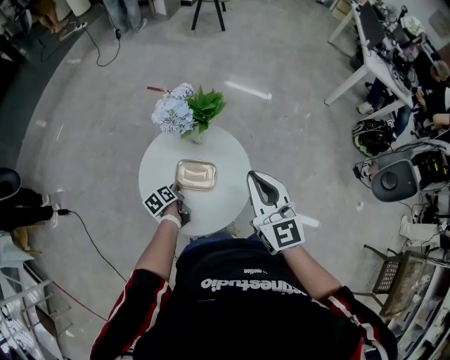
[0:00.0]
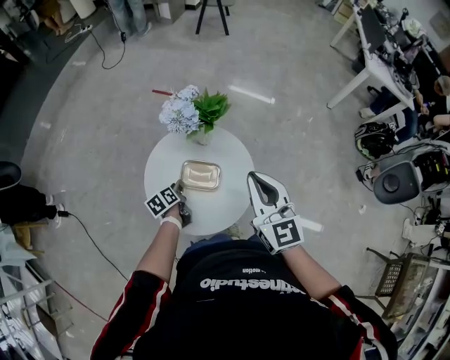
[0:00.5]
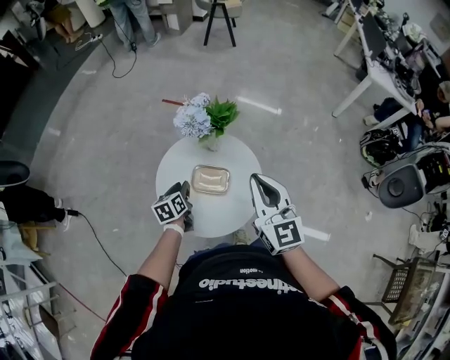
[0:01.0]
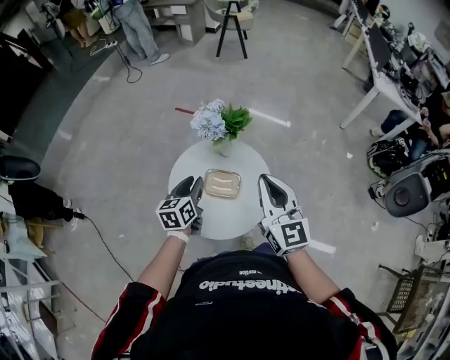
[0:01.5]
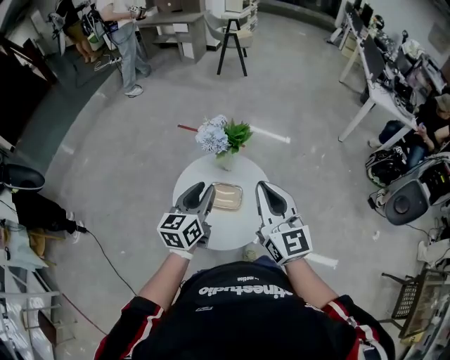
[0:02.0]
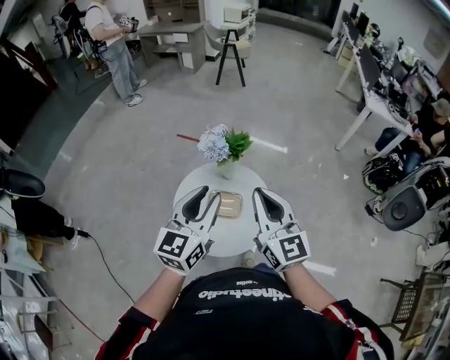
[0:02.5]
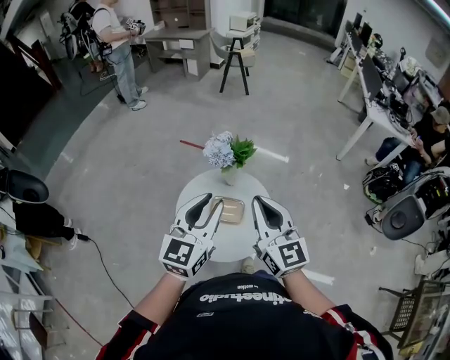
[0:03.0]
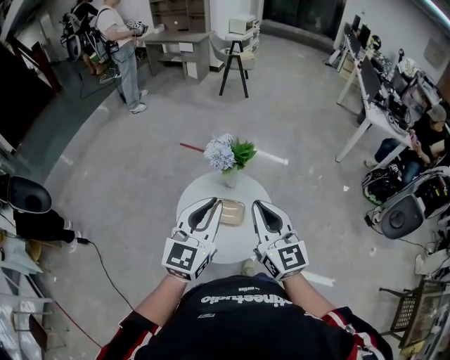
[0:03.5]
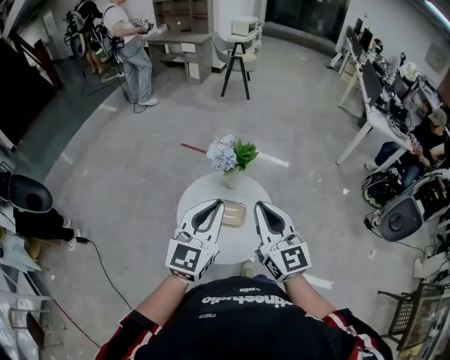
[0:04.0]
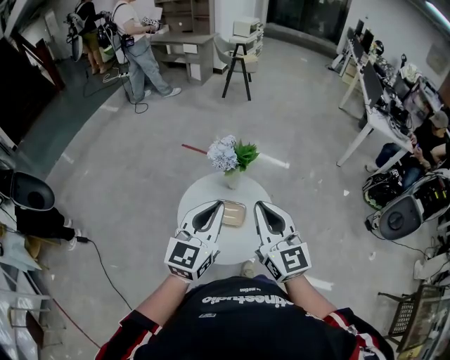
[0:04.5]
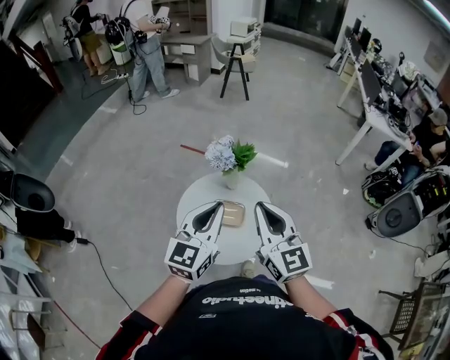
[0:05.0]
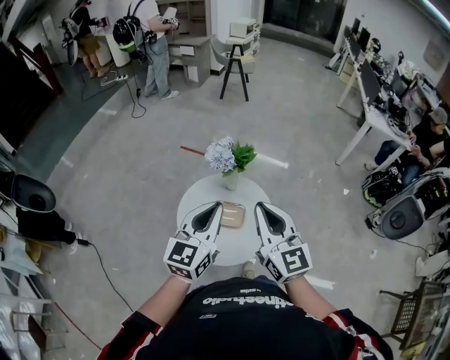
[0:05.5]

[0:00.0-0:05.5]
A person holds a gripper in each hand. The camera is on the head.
0:00.0 to 0:02.0: The right gripper is displaced upward, to the left and backward by approximately 15 cm, while the left gripper moves upward, roughly 35 cm, and angles its fingers upward, by roughly 40 degrees.
0:02.0 to 0:03.5: The left gripper travels upward and backward by about 15 cm, and turns by about 30 degrees.
0:03.5 to 0:05.5: There are only small adjustments of the grippers.

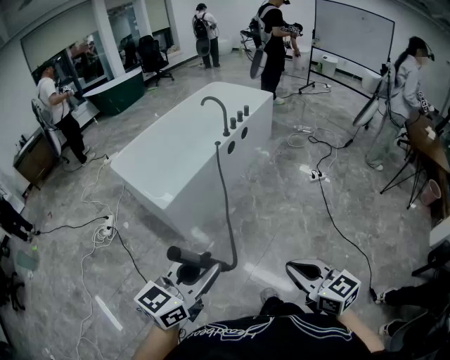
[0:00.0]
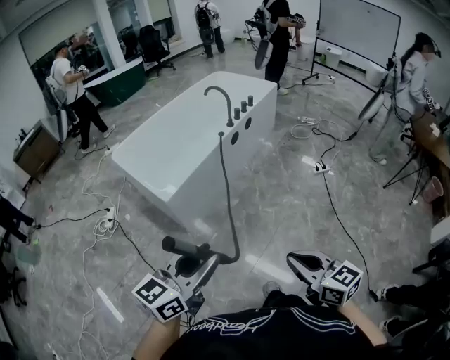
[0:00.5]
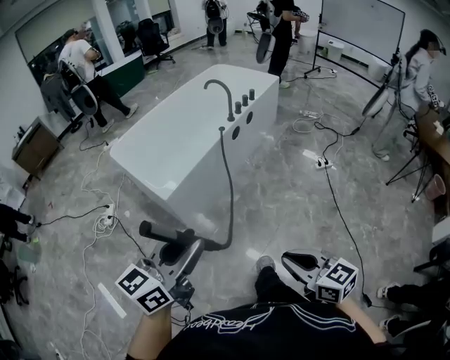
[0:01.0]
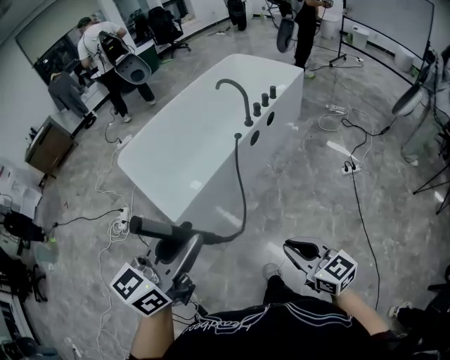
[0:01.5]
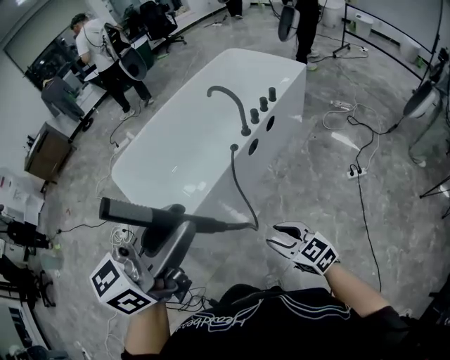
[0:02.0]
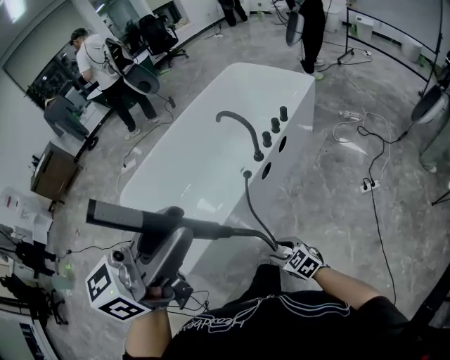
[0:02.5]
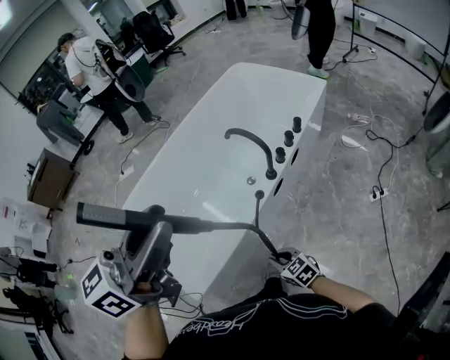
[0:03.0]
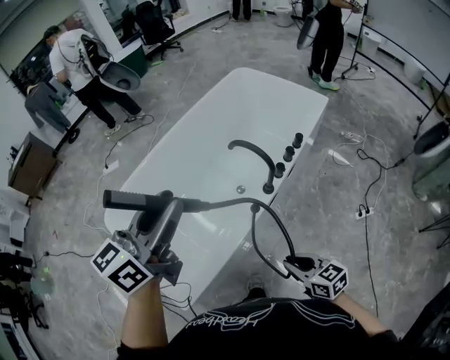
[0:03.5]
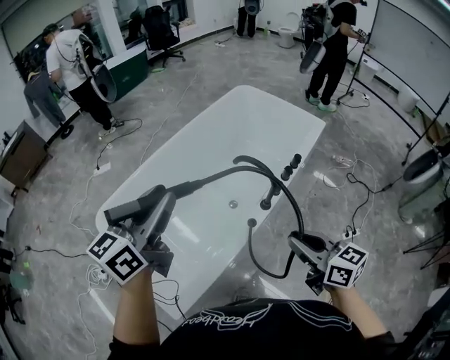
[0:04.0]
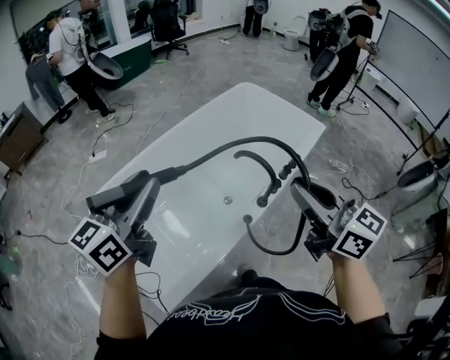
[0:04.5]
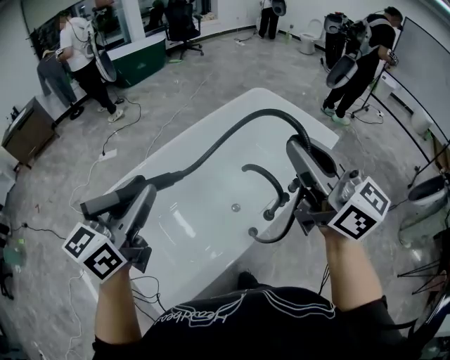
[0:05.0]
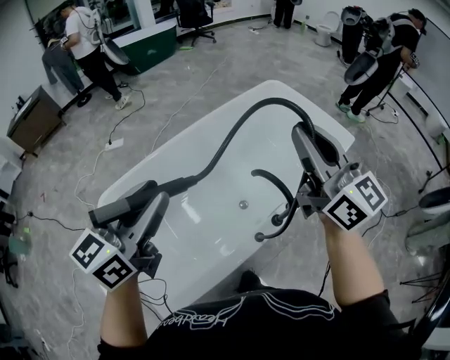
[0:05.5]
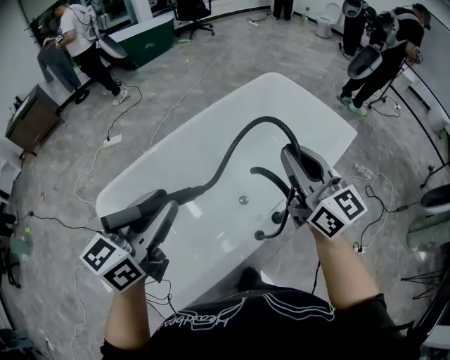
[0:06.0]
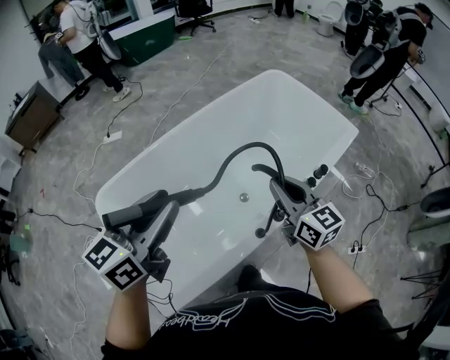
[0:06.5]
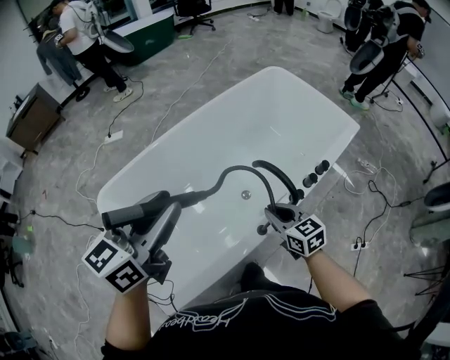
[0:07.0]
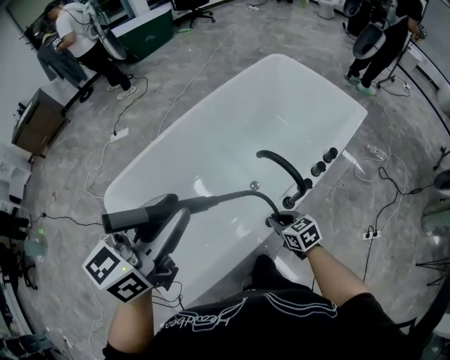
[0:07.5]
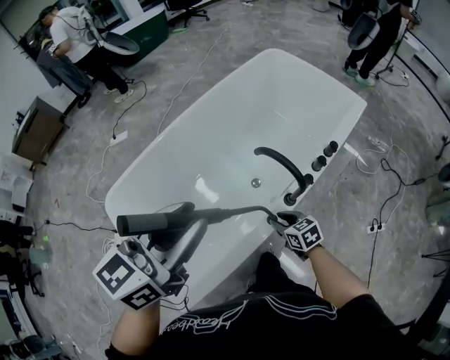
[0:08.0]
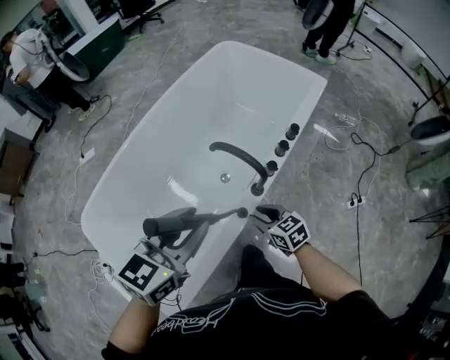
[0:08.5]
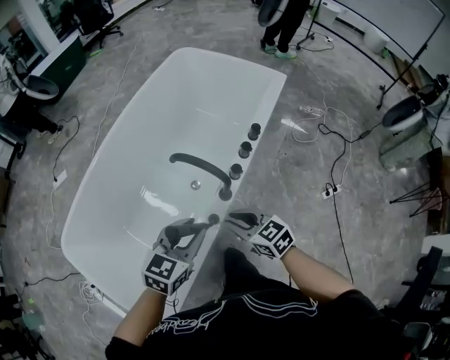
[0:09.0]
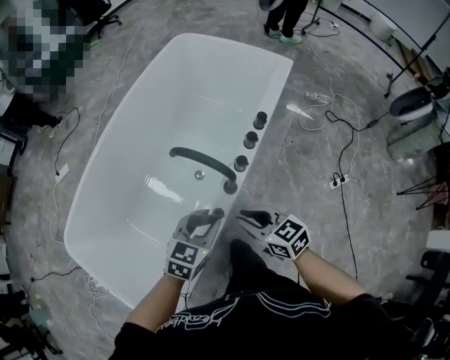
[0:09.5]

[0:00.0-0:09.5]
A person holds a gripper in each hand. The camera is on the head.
0:00.0 to 0:02.0: Both grippers travel together forward, roughly 40 cm. The right gripper changes its angle by roughly 20 degrees, and opens.
0:02.0 to 0:04.0: The left gripper moves forward, approximately 40 cm. Meanwhile the right gripper moves forward and upward, some 35 cm, rotates some 30 degrees, and closes.
0:04.0 to 0:05.5: The left gripper travels forward by some 5 cm. The right gripper shifts some 30 cm forward and upward, and turns by approximately 30 degrees.
0:05.5 to 0:07.5: The right gripper travels downward by about 50 cm, and tilts its fingers approximately 60 degrees downward; the left gripper shifts by approximately 5 cm.
0:07.5 to 0:09.5: The left gripper heads downward and to the right, covering roughly 35 cm, and turns by approximately 40 degrees; the right gripper goes some 10 cm upward and to the right.

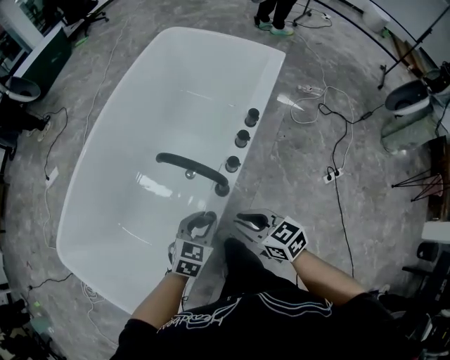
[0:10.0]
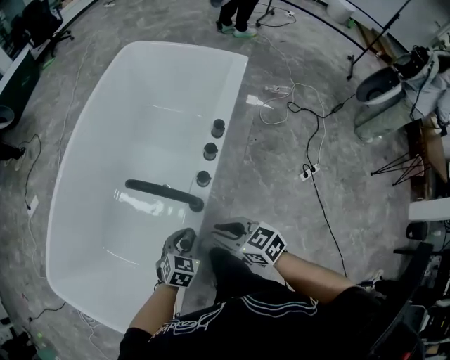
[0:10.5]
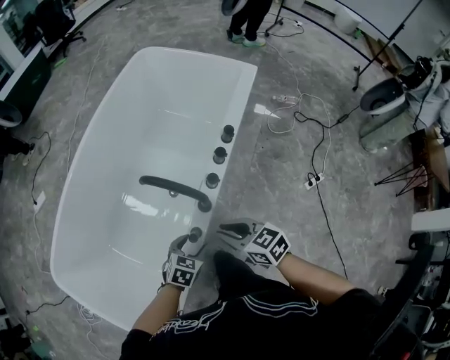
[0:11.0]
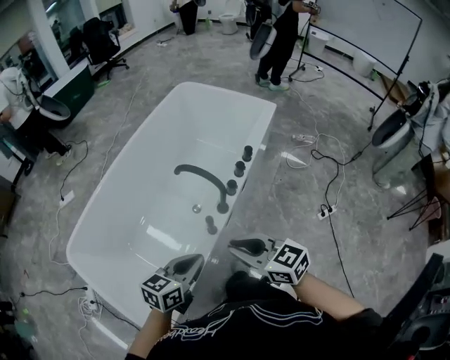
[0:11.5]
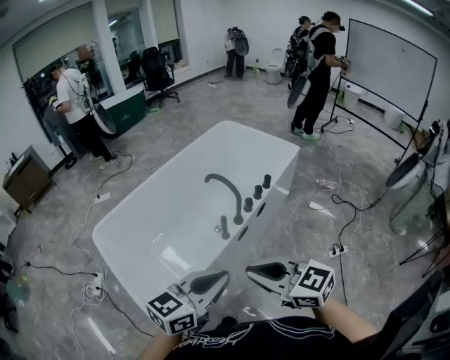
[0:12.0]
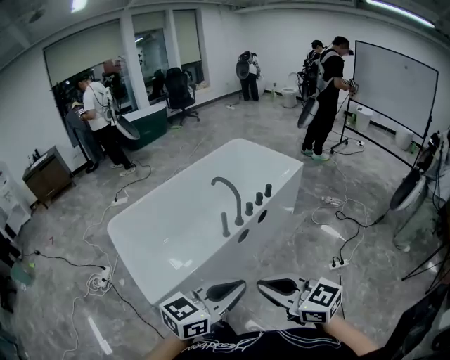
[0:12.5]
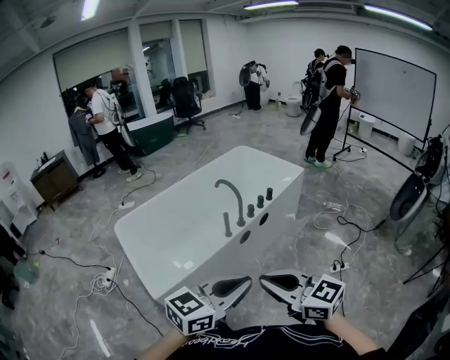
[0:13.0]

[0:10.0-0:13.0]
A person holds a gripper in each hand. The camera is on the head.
0:10.0 to 0:11.5: The two grippers go approximately 20 cm upward and backward. The left gripper turns by some 30 degrees, and closes its fingers.
0:11.5 to 0:13.0: The right gripper heads backward and upward, covering roughly 35 cm, and turns by about 20 degrees; the left gripper goes about 40 cm backward, upward and to the right, and swivels approximately 30 degrees.

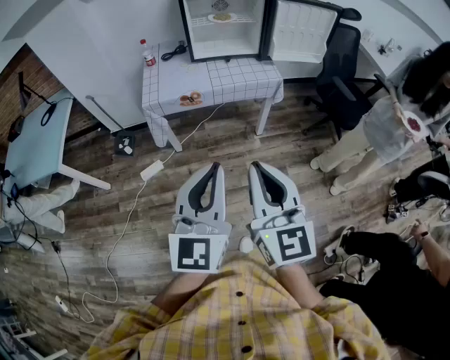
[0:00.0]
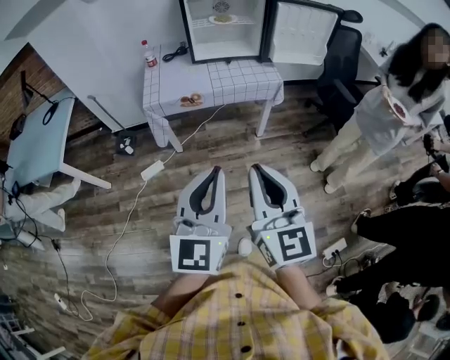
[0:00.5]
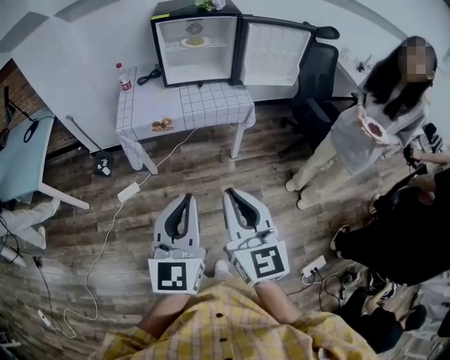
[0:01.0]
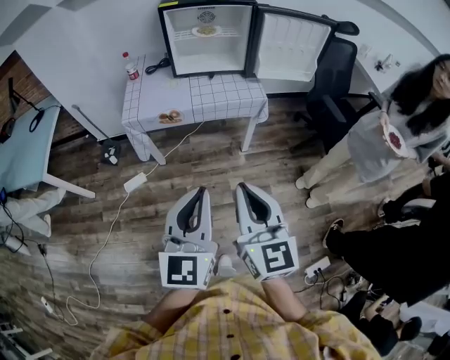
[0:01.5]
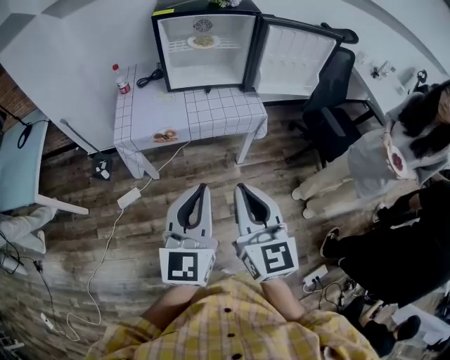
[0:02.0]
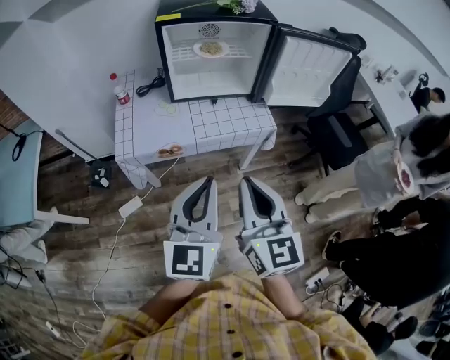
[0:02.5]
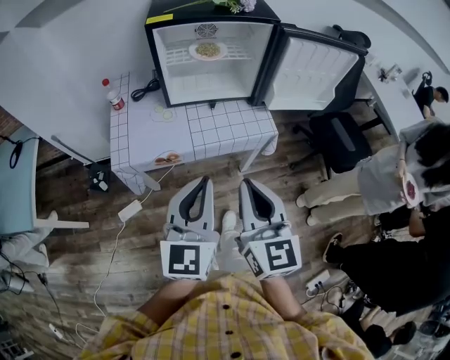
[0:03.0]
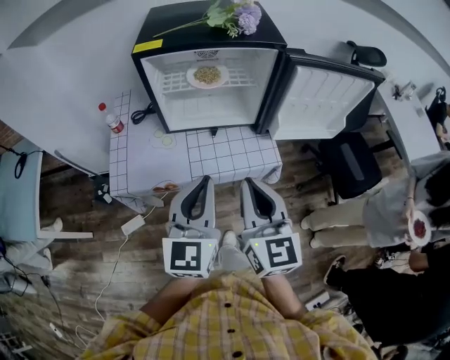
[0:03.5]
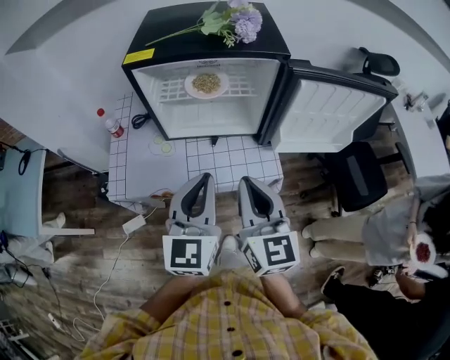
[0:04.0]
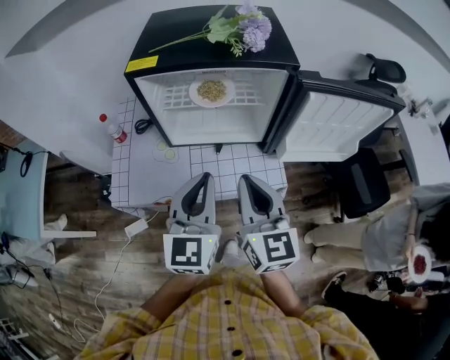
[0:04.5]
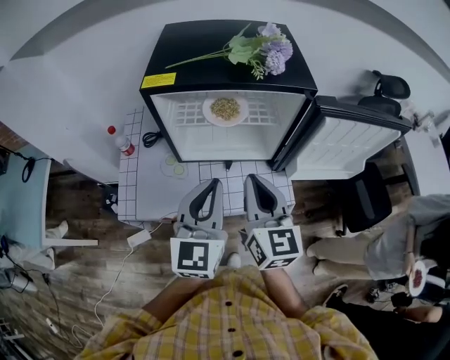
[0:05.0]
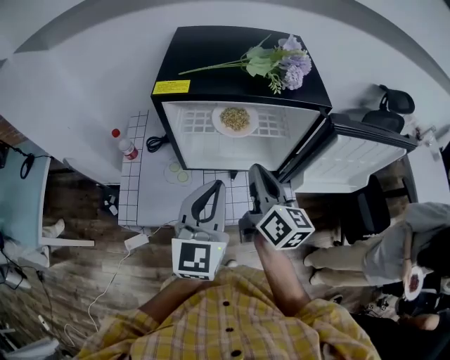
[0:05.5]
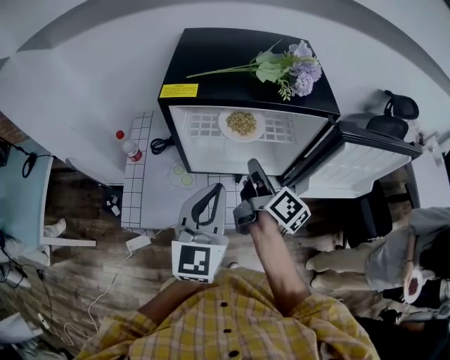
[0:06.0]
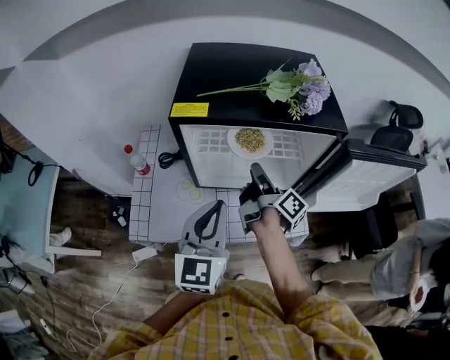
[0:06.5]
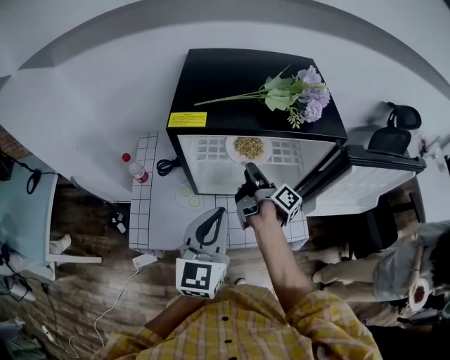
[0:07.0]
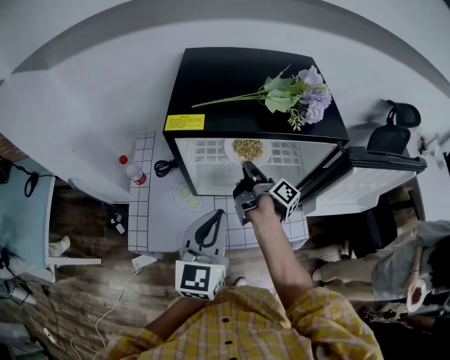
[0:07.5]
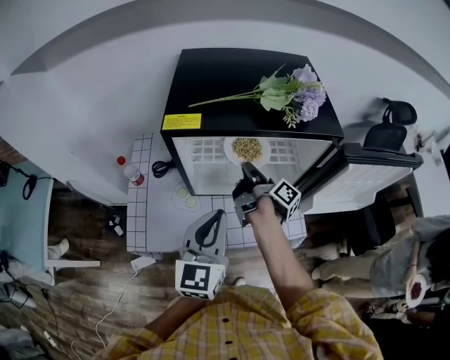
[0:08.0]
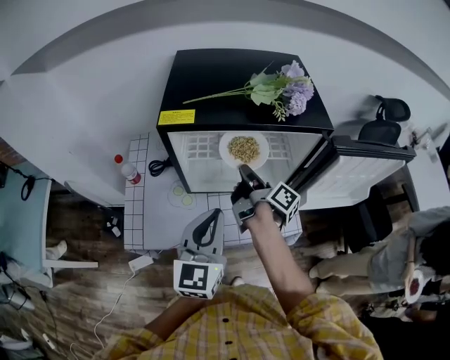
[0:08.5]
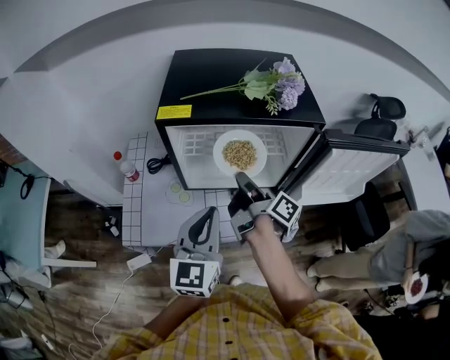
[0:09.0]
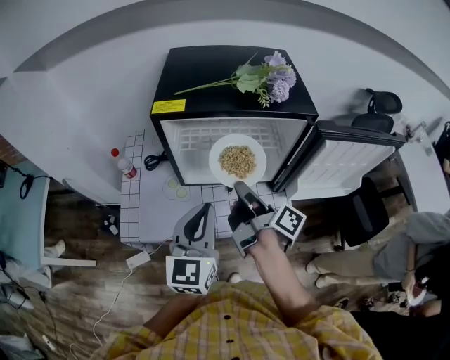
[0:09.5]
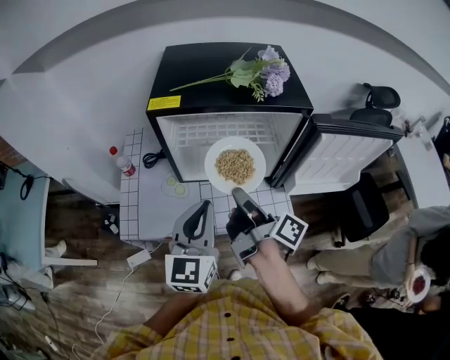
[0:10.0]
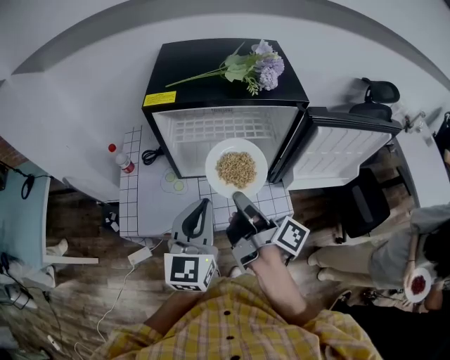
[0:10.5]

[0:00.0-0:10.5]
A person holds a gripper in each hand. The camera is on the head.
0:00.0 to 0:02.0: Both grippers move forward, roughly 15 cm.
0:02.0 to 0:04.0: The grippers both shift forward by about 35 cm.
0:04.0 to 0:06.5: The left gripper goes about 15 cm forward and to the left. The right gripper heads forward, covering about 25 cm, rotates around the line of its fingers by some 80 degrees, clockwise from behind, and opens its fingers.
0:06.5 to 0:08.5: The right gripper closes.
0:08.5 to 0:10.5: The left gripper moves approximately 5 cm, while the right gripper is displaced backward by about 15 cm.
